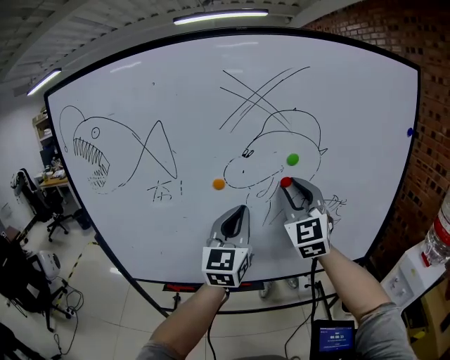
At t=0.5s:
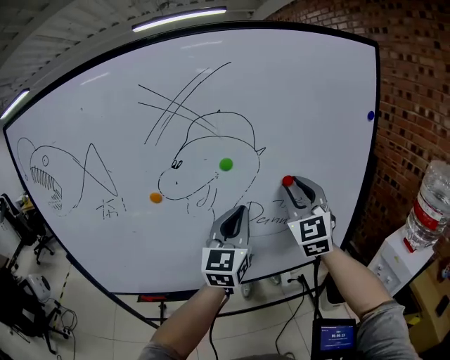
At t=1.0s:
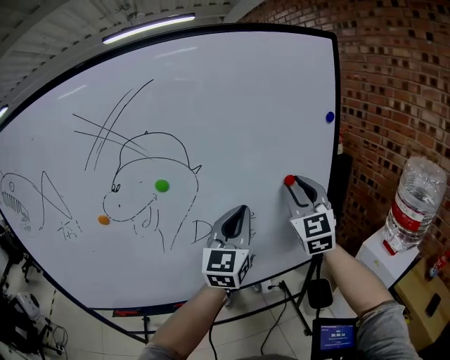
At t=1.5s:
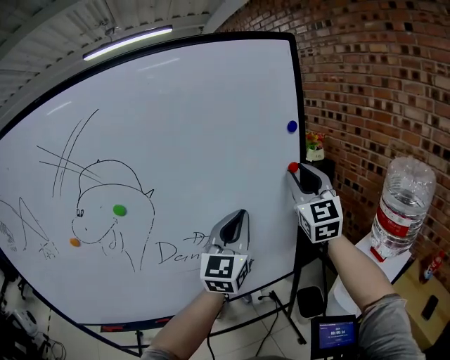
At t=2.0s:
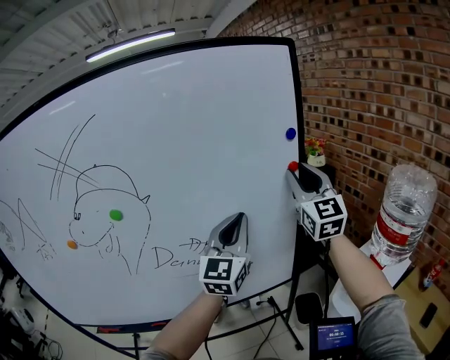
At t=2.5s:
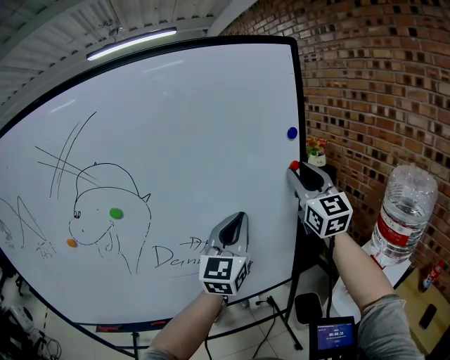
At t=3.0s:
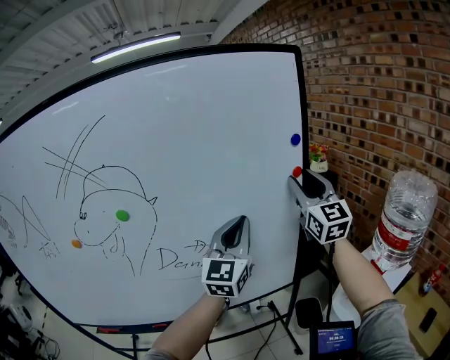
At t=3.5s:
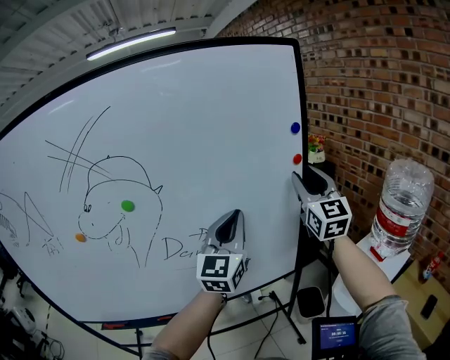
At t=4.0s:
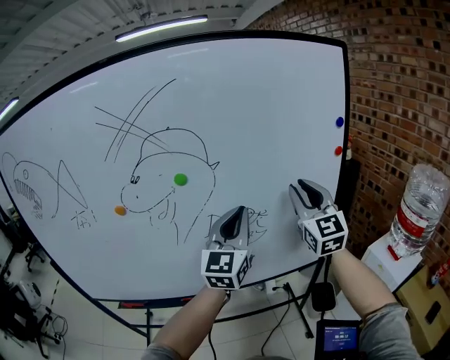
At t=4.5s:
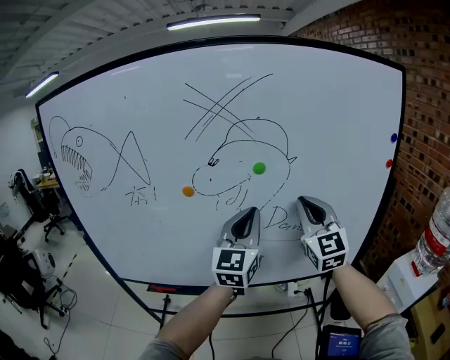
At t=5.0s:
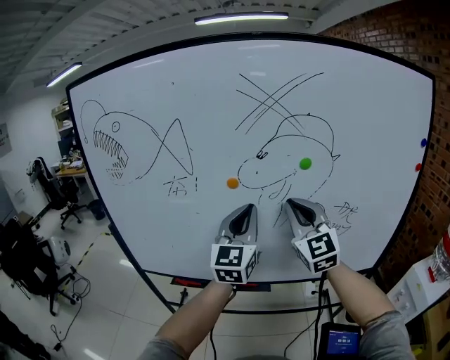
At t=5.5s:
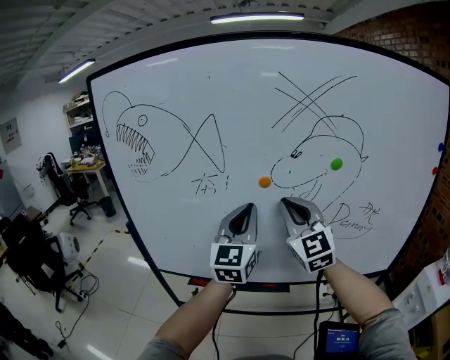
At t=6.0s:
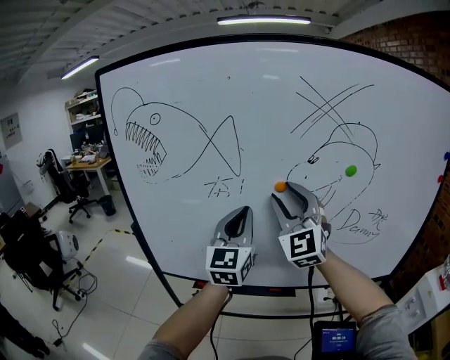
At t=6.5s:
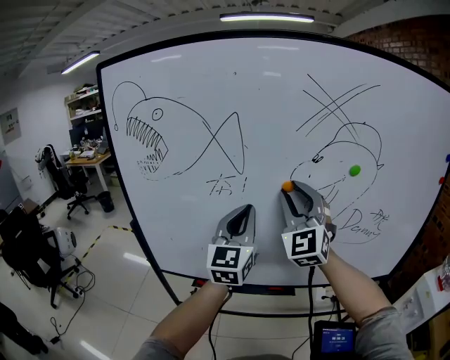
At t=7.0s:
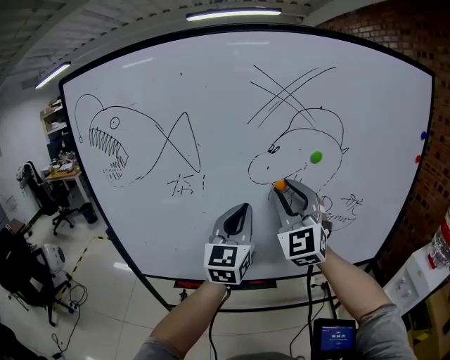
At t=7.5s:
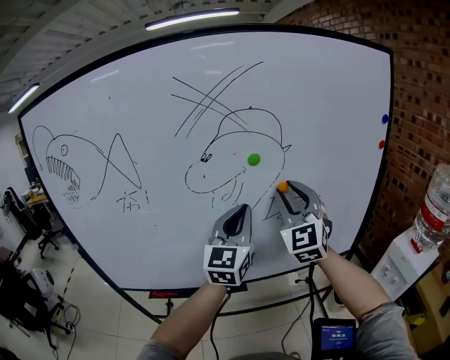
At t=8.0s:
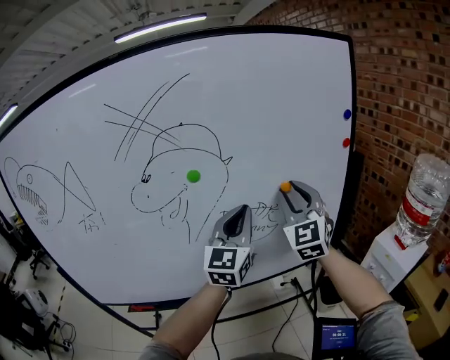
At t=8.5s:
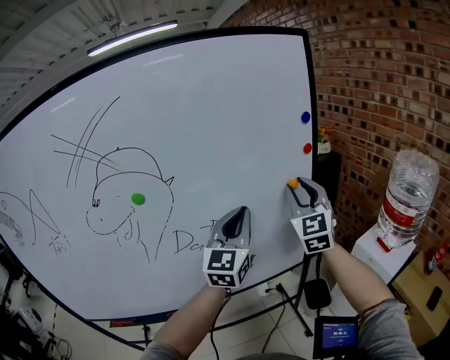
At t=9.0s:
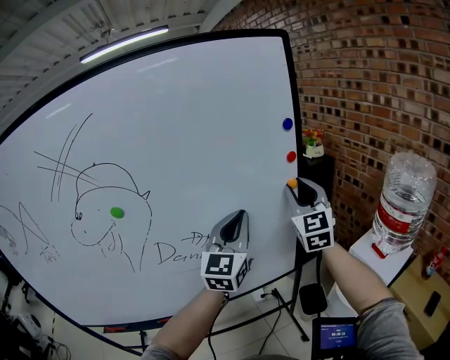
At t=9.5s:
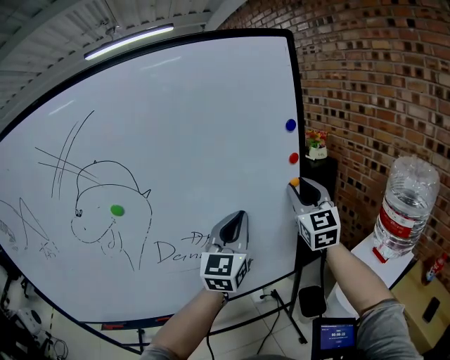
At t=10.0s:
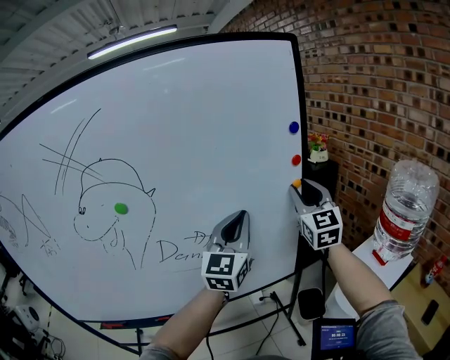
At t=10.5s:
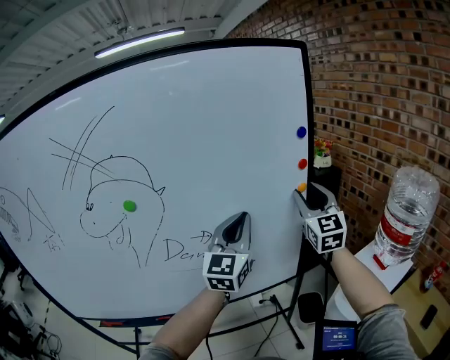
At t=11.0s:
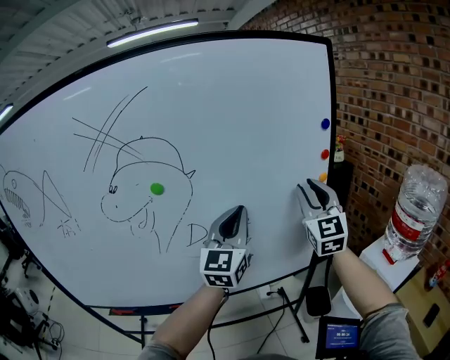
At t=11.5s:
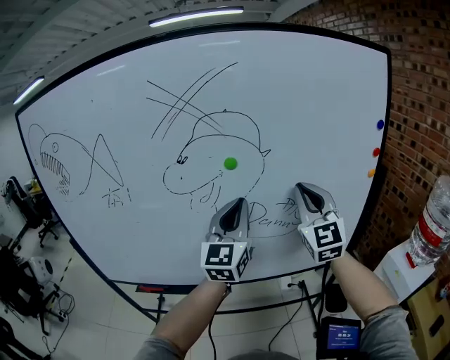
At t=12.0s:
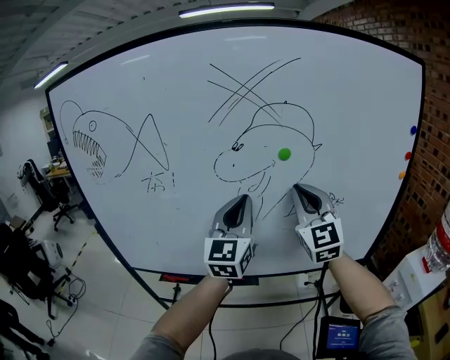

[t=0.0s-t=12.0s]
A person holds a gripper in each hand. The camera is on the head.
t=0.0s to t=2.0s: The two grippers travel together, to the right, about 40 cm.
t=2.0s to t=4.0s: The two grippers go some 15 cm to the left and backward.
t=4.0s to t=6.0s: The two grippers go about 40 cm to the left. The left gripper swivels some 20 degrees. Meanwhile the right gripper swivels some 30 degrees, and closes, then reopens.
t=6.0s to t=8.0s: The right gripper changes place by about 40 cm, and rotates roughly 30 degrees, while the left gripper changes place by about 35 cm, and swivels roughly 20 degrees.
t=8.0s to t=10.0s: The two grippers go approximately 20 cm to the right and forward.
t=10.0s to t=12.0s: Both grippers travel together to the left, some 40 cm. The right gripper turns by about 20 degrees, and closes up, while the left gripper changes its angle by some 20 degrees.

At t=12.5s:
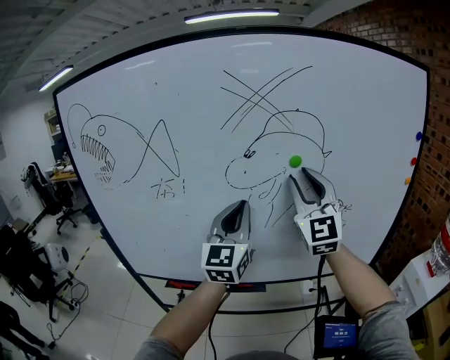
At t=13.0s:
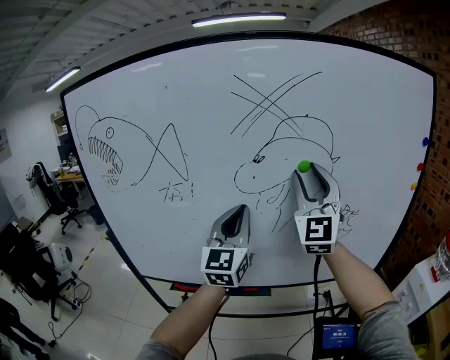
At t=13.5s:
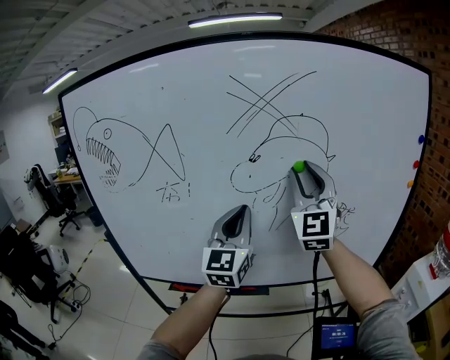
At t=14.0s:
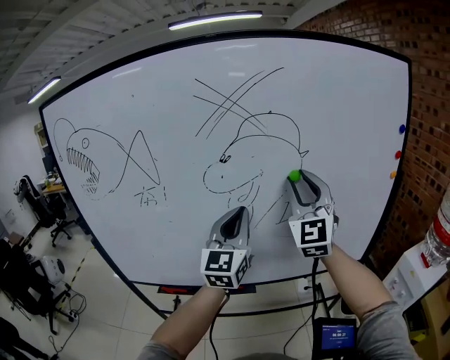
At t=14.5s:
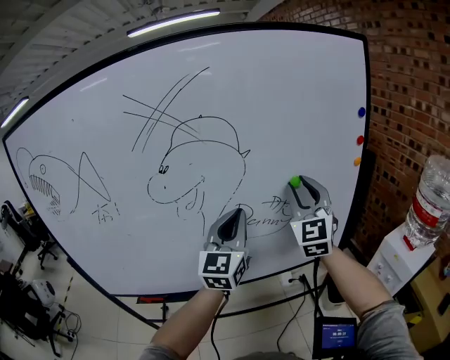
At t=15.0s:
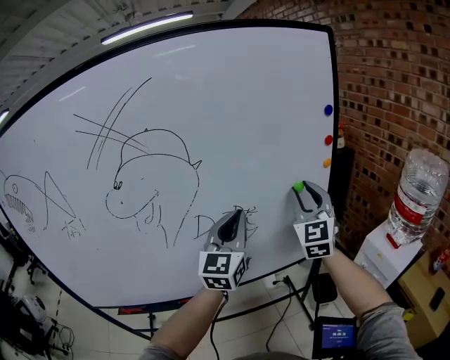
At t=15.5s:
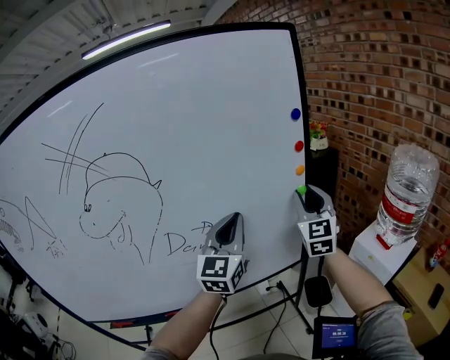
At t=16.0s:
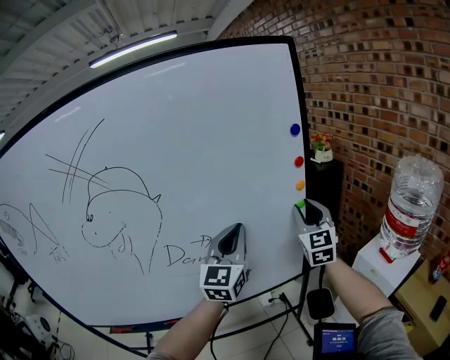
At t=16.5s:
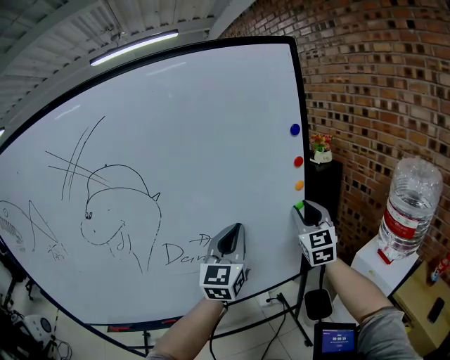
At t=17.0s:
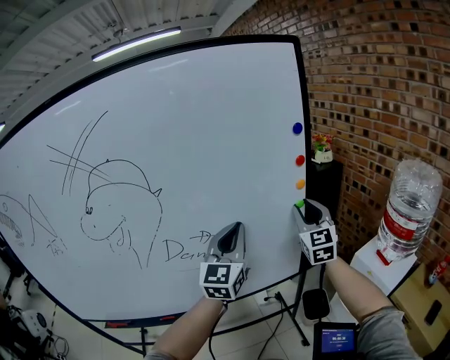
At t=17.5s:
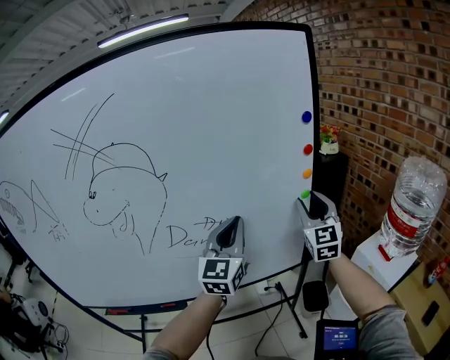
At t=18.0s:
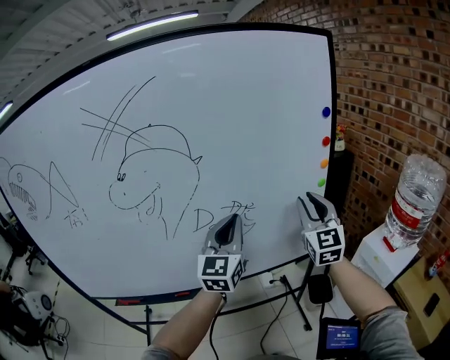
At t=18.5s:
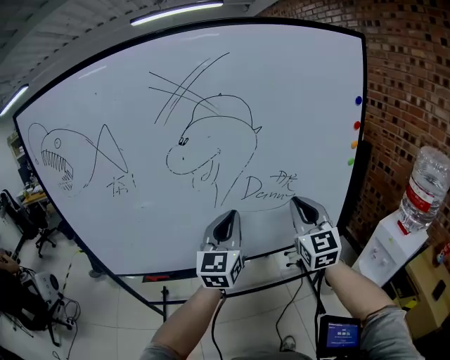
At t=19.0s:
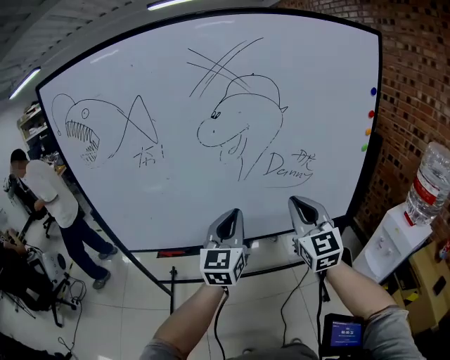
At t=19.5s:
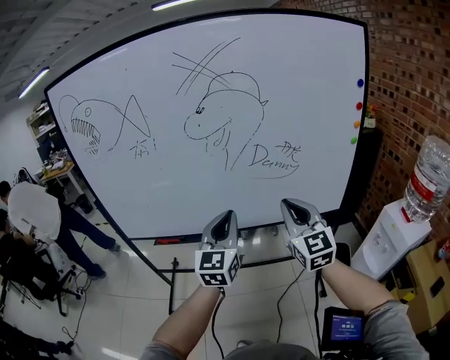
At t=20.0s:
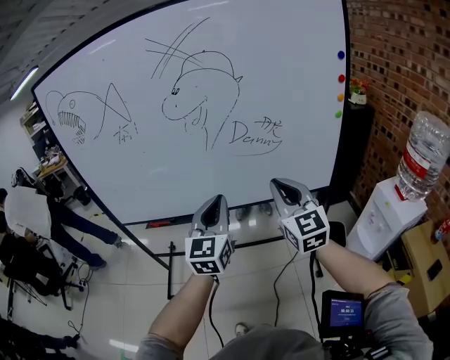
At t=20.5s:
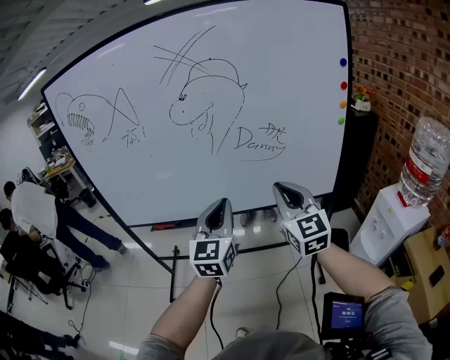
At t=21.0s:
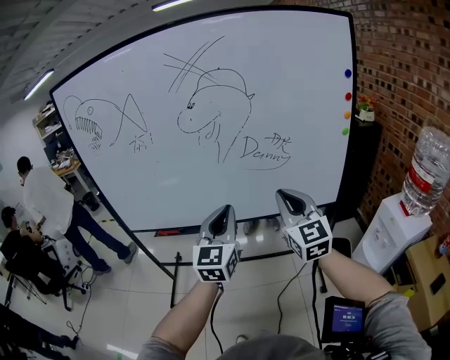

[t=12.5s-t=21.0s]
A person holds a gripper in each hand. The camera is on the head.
t=12.5s to t=14.5s: The grippers both shift to the right by about 20 cm.
t=14.5s to t=16.5s: Both grippers travel together to the right and forward, roughly 25 cm.
t=16.5s to t=19.0s: Both grippers move to the left and backward, about 40 cm. The right gripper rotates some 20 degrees, and closes.
t=19.0s to t=21.0s: Both grippers move backward and to the right, approximately 10 cm.

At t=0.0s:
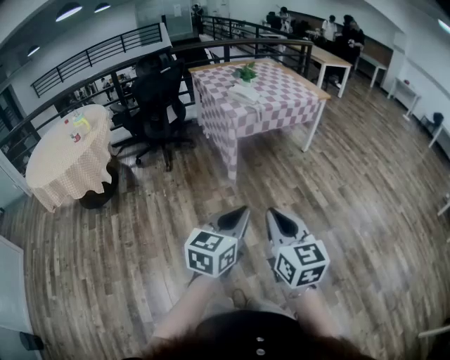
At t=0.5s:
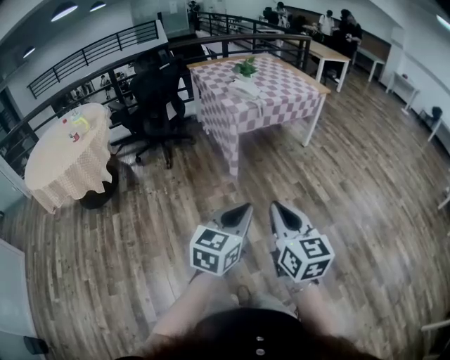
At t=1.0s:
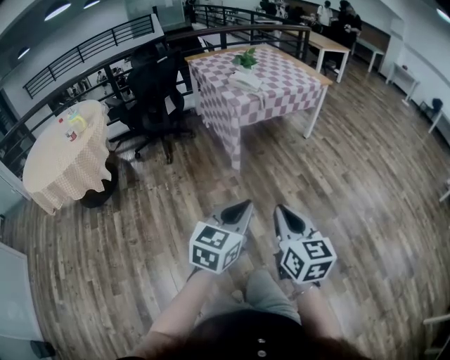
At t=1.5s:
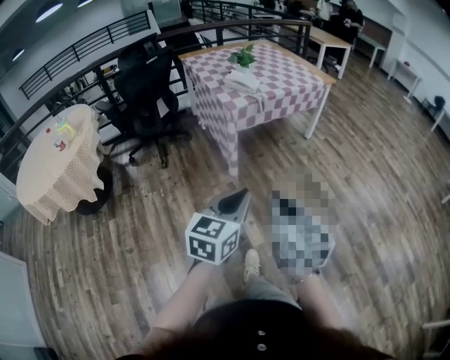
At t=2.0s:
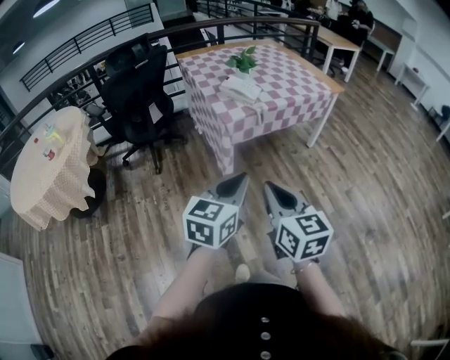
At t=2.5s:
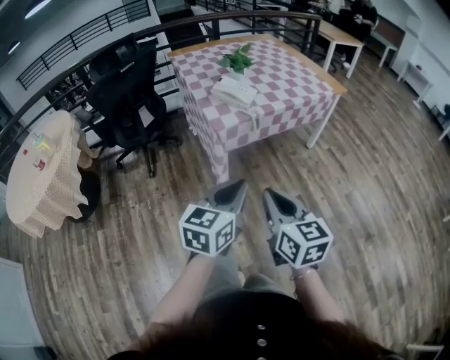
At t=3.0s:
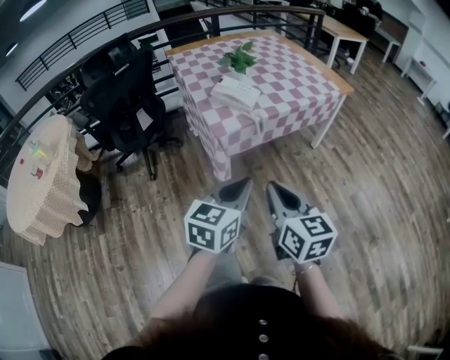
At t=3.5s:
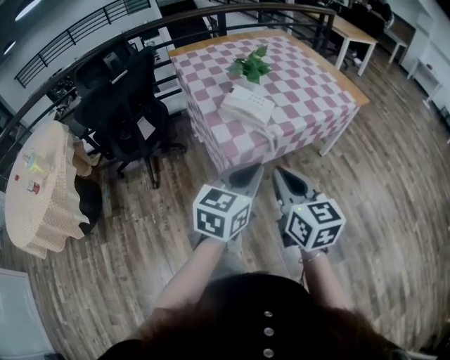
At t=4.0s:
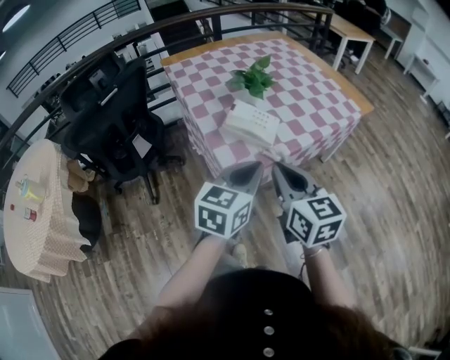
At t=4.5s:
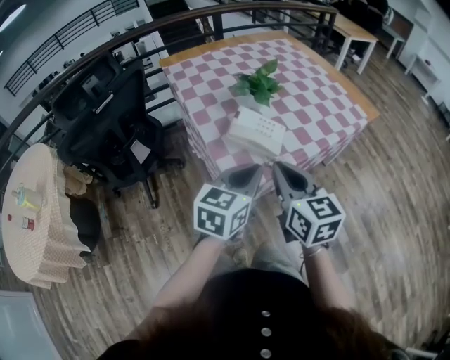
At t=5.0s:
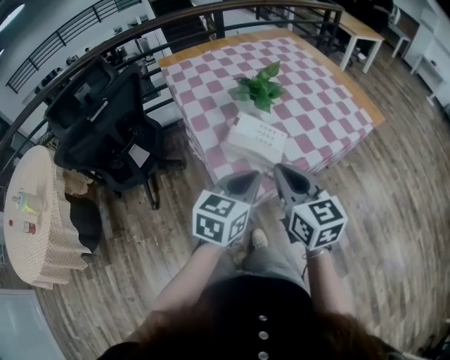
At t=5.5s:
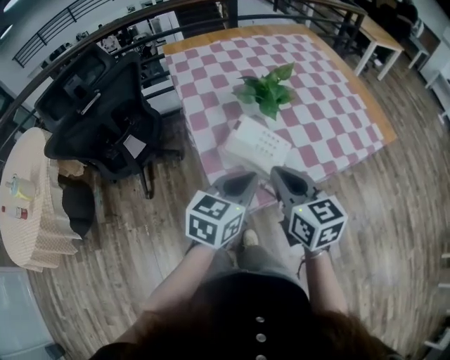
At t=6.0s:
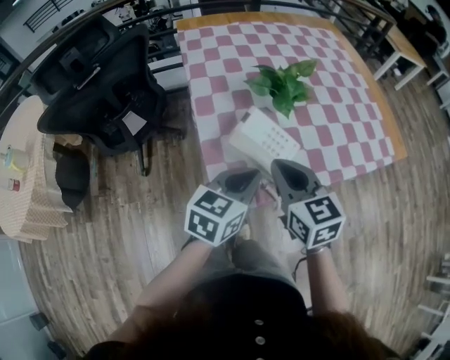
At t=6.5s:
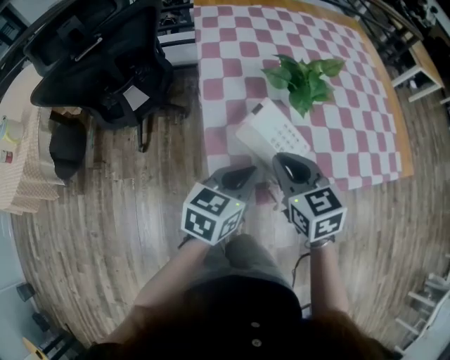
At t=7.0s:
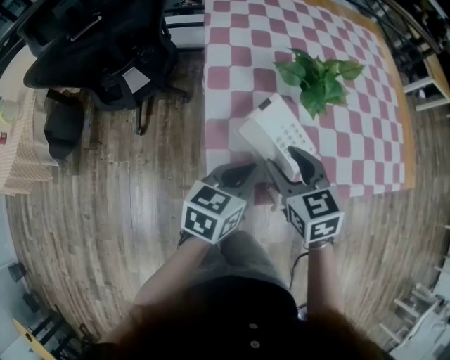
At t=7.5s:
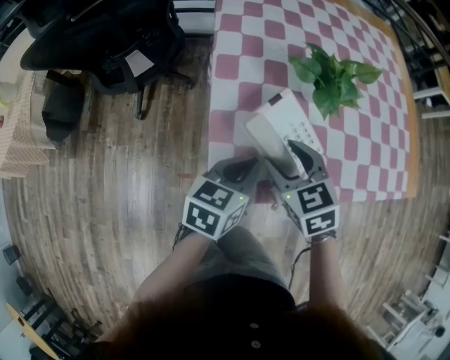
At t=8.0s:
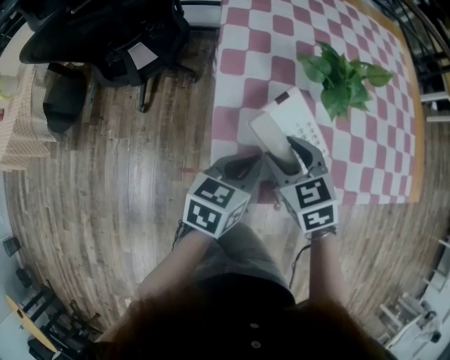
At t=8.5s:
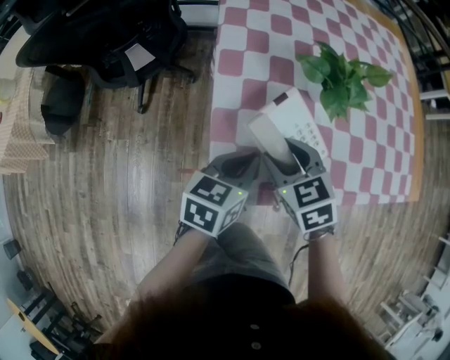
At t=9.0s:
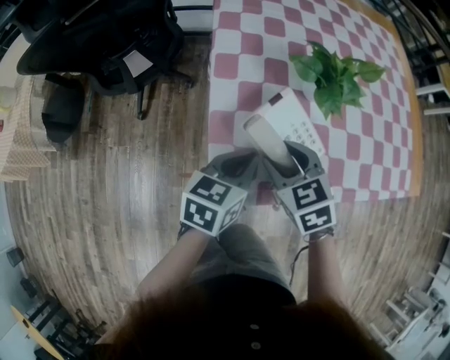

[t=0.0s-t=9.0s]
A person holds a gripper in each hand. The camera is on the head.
t=0.0s to t=2.0s: The grippers both shift forward by approximately 30 cm.
t=2.0s to t=4.5s: Both grippers are carried forward, roughly 50 cm.
t=4.5s to t=7.0s: Both grippers travel together forward and downward, roughly 20 cm. The right gripper swivels approximately 40 degrees, and opens its fingers. The left gripper turns by roughly 30 degrees.
t=7.0s to t=9.0s: The right gripper moves some 5 cm.
